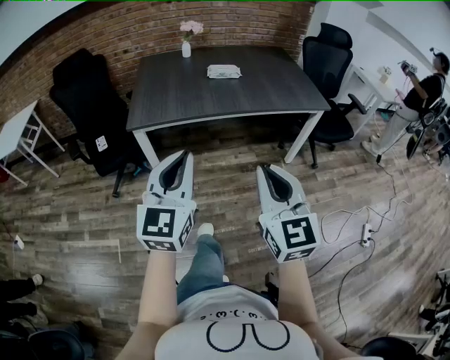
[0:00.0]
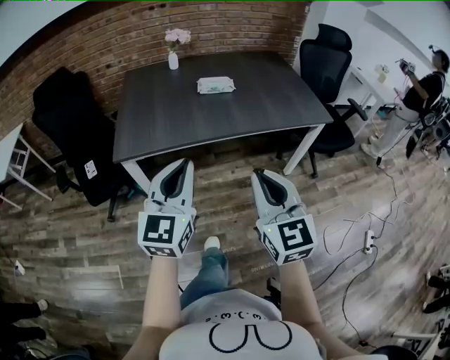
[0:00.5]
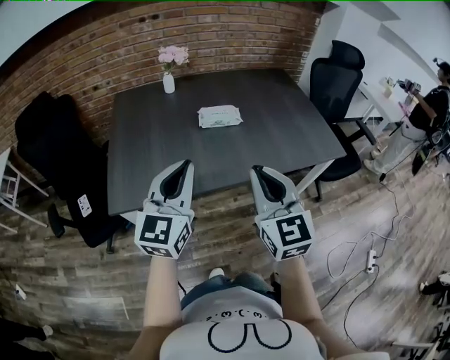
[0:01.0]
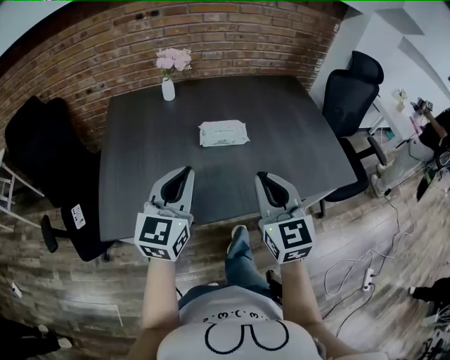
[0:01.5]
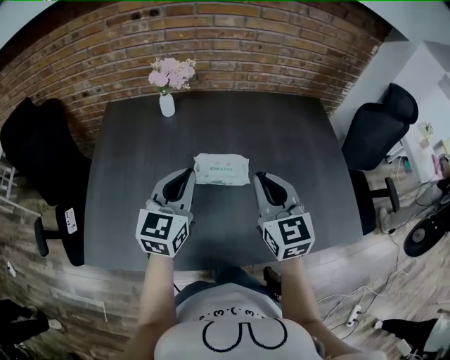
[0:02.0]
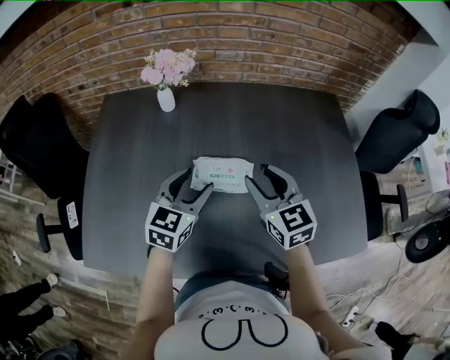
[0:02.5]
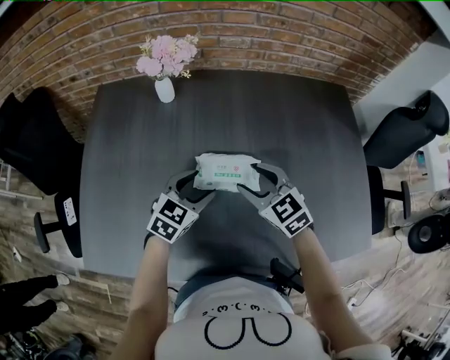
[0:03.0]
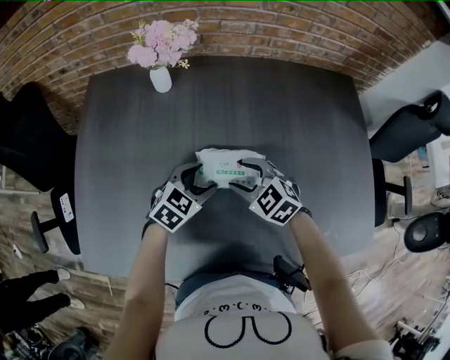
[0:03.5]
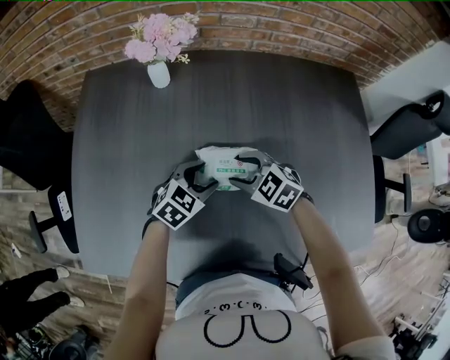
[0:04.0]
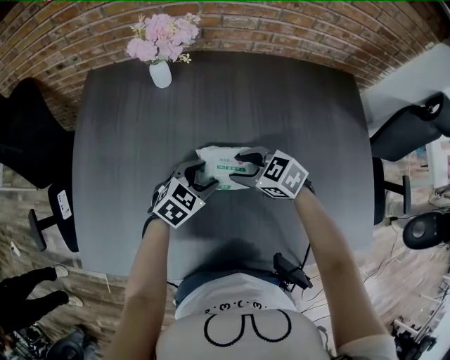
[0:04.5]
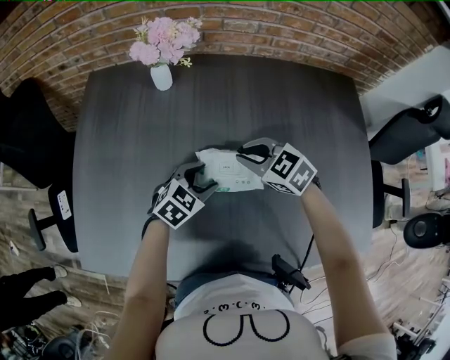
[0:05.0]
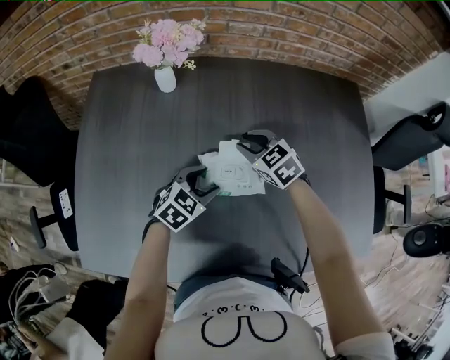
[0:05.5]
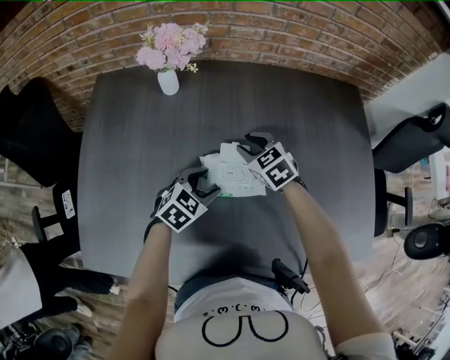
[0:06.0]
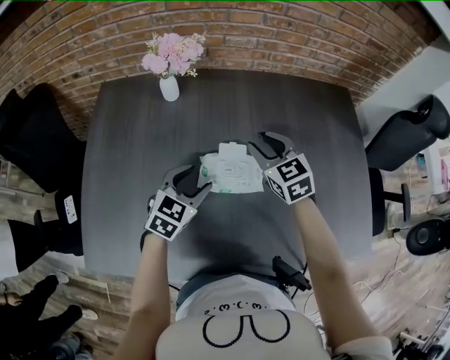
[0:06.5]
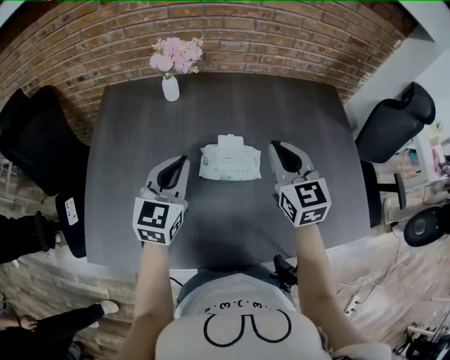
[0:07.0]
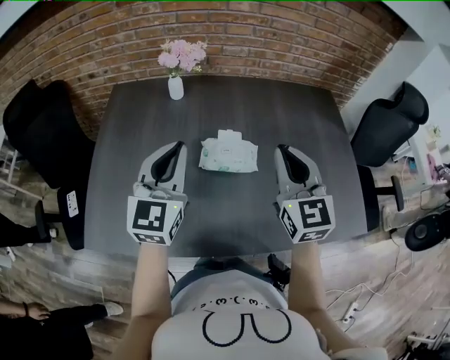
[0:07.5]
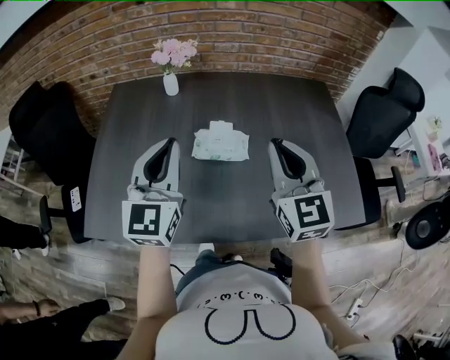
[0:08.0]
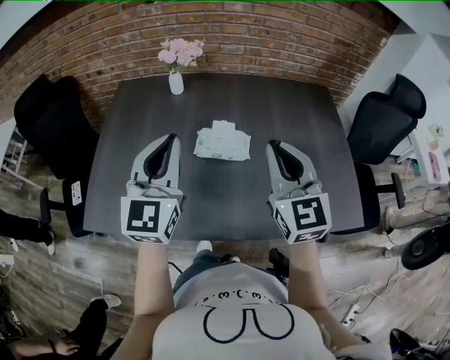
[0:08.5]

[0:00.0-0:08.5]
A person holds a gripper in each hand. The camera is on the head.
0:00.0 to 0:02.0: The pair of grippers is taken forward, some 80 cm.
0:02.0 to 0:04.0: The two grippers go about 25 cm downward and forward. The right gripper angles its fingers downward, by roughly 40 degrees, and opens its fingers. Meanwhile the left gripper tilts its fingers roughly 40 degrees downward, and opens.
0:04.0 to 0:06.5: The right gripper swings up and down, about 10 cm each way, with 2 reversals, turns by roughly 40 degrees, and closes its fingers. The left gripper moves upward, approximately 10 cm.
0:06.5 to 0:08.5: The left gripper travels upward and backward by approximately 30 cm, tips its fingers upward by approximately 40 degrees, and closes its fingers. The right gripper is displaced backward and upward by roughly 30 cm, changes its angle by about 30 degrees, and closes up.

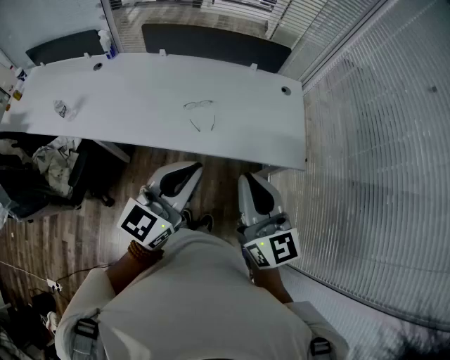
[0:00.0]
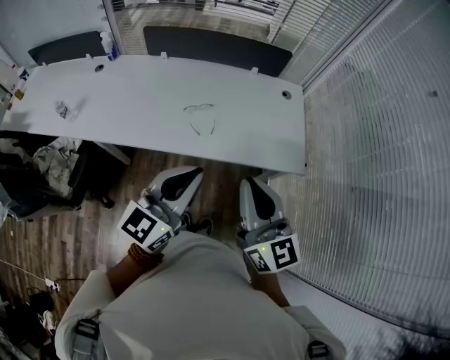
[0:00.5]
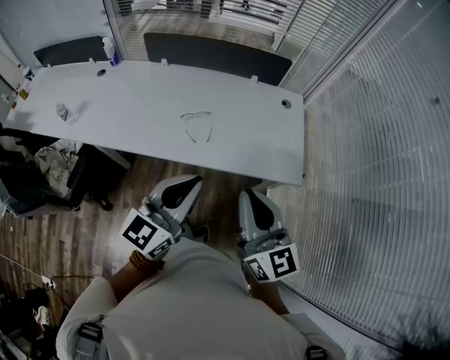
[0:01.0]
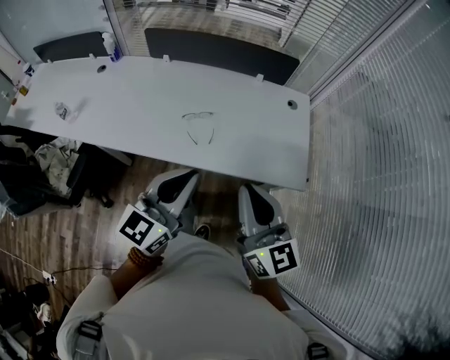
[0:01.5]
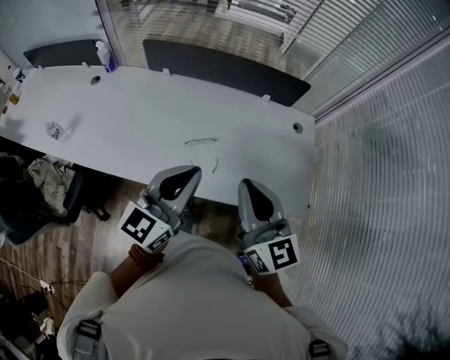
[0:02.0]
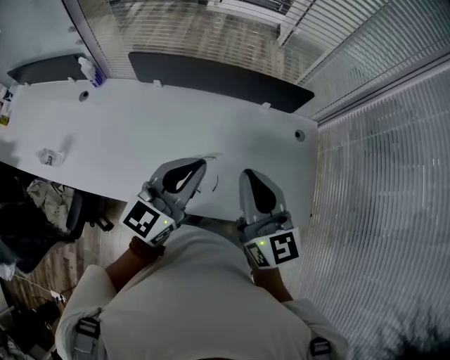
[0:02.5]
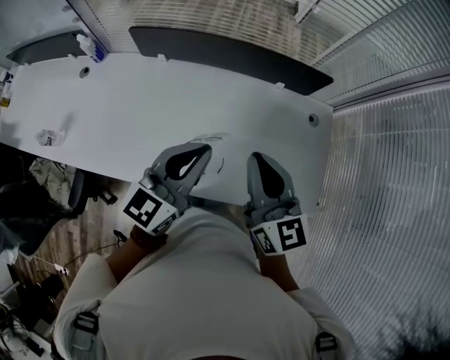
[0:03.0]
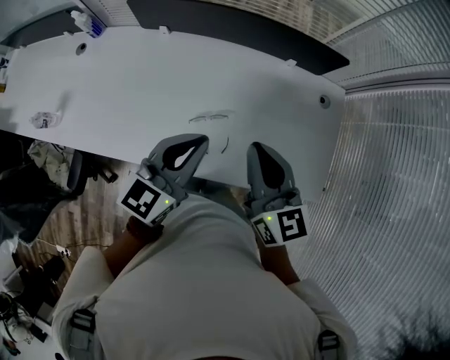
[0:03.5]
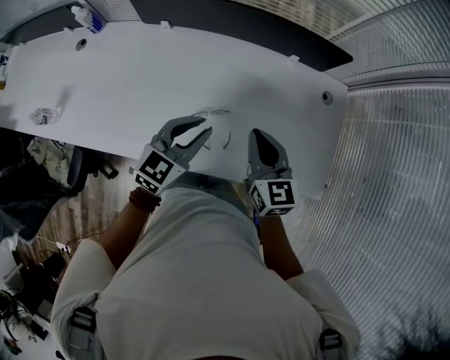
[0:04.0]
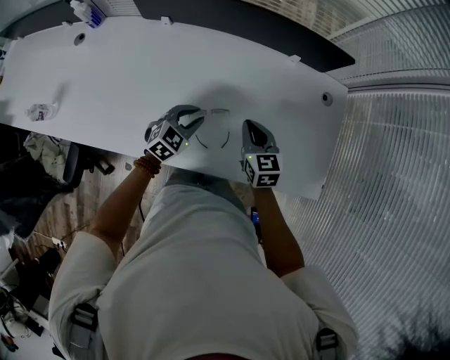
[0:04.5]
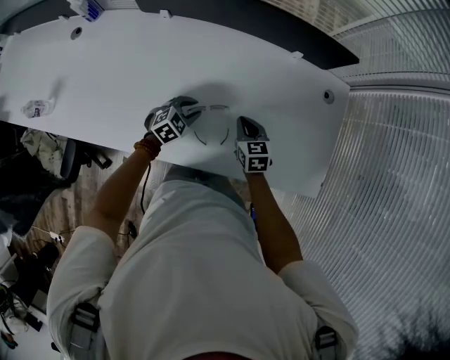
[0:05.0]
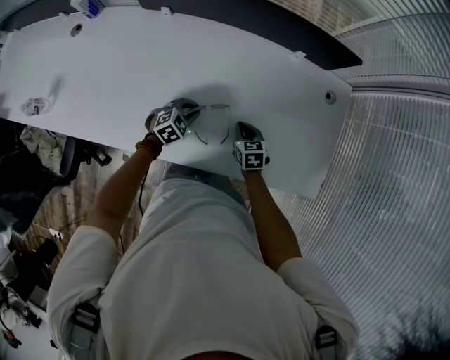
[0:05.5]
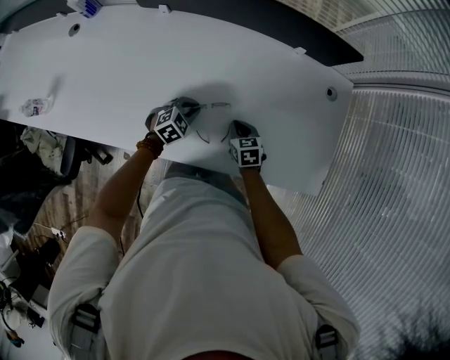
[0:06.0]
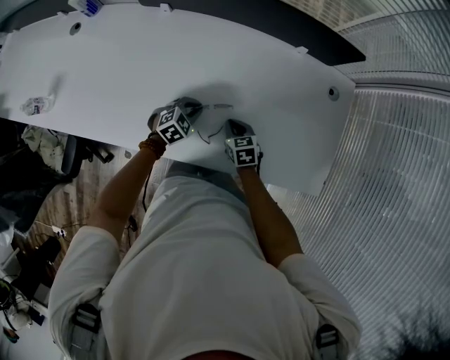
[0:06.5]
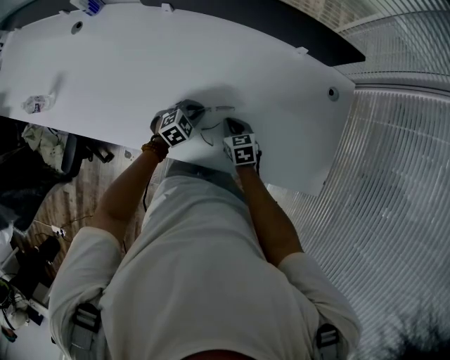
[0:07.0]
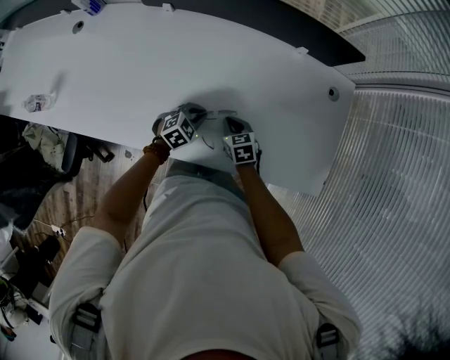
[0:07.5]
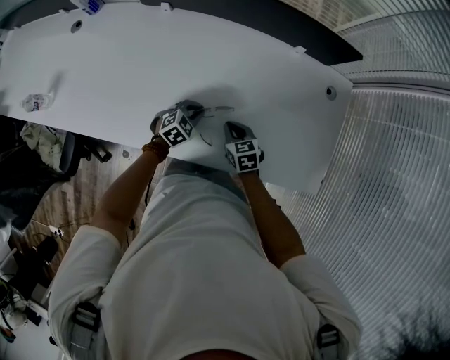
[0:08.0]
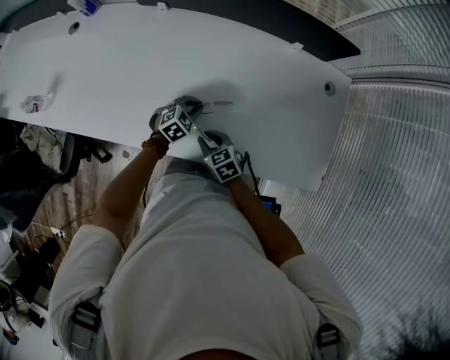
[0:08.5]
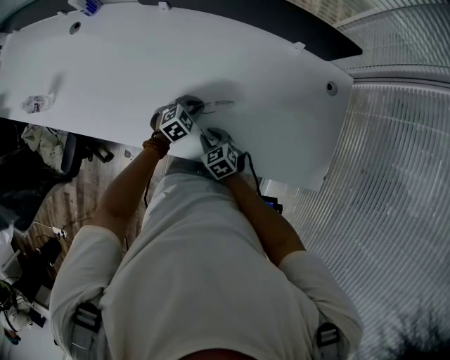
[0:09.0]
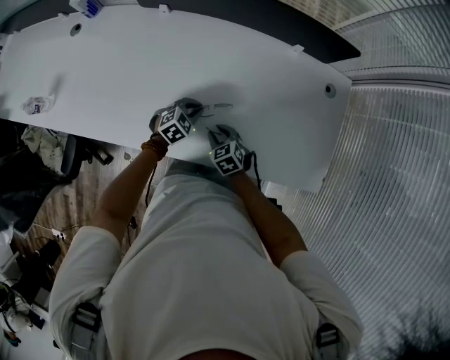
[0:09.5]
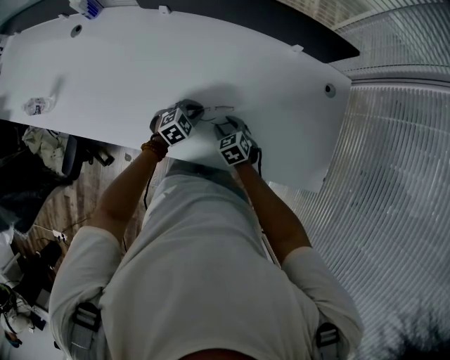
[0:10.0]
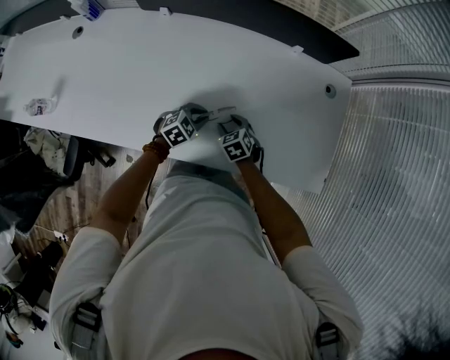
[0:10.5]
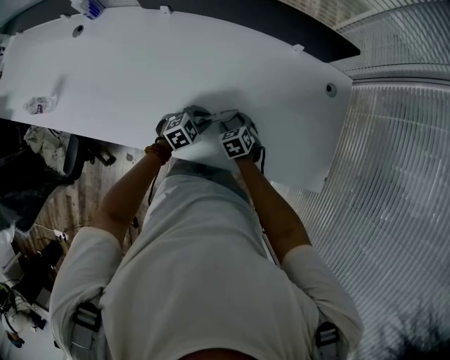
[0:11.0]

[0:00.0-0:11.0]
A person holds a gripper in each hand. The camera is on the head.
0:00.0 to 0:02.0: Both grippers travel together forward, some 20 cm.
0:02.0 to 0:03.5: Both grippers travel together forward and downward, approximately 15 cm.
0:03.5 to 0:05.5: Both grippers move downward, roughly 35 cm. The left gripper points its fingers roughly 40 degrees further downward. Meanwhile the right gripper tips its fingers downward by roughly 40 degrees.
0:05.5 to 0:07.5: The right gripper goes approximately 5 cm to the left.
0:07.5 to 0:09.0: The right gripper shifts about 10 cm backward and to the left.
0:09.0 to 0:11.0: The left gripper ends up about 5 cm from where it was; the right gripper heads forward and to the right, covering some 10 cm, and opens its fingers.

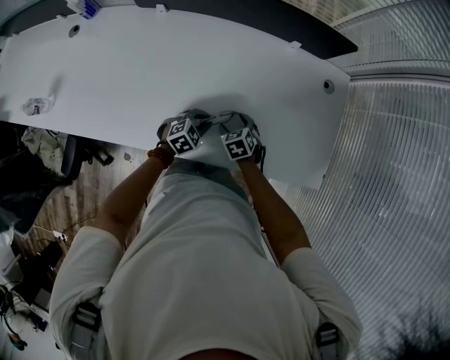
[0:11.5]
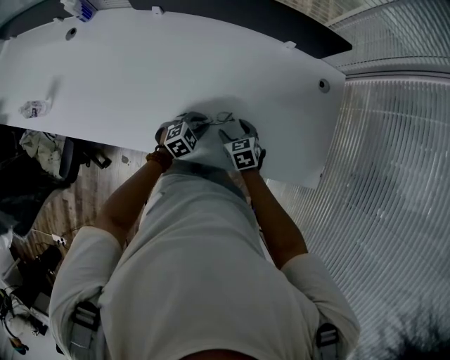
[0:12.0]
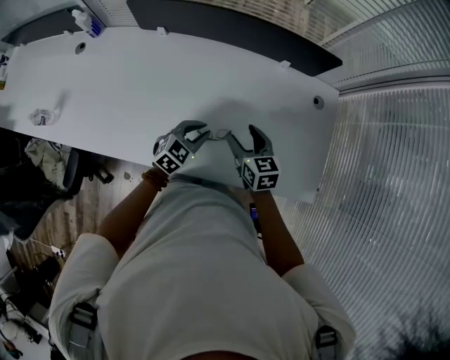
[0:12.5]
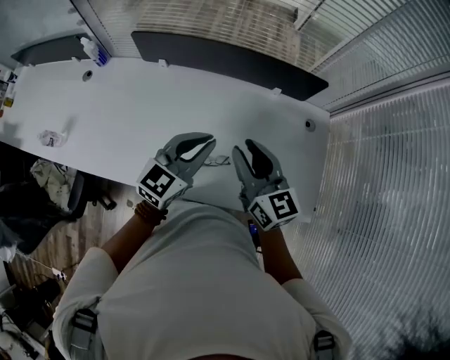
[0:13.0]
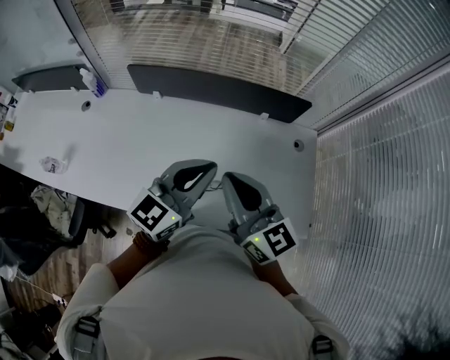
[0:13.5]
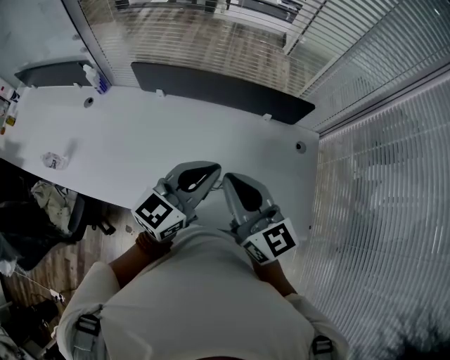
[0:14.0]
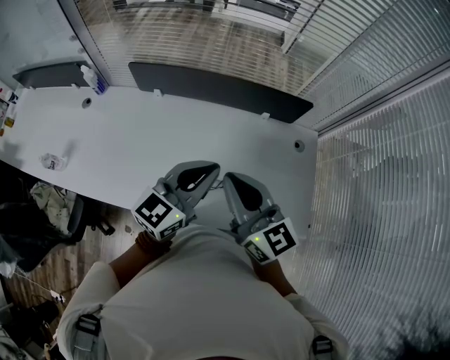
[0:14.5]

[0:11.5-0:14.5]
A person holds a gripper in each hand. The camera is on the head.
0:11.5 to 0:13.0: Both grippers travel together upward, roughly 35 cm. The left gripper angles its fingers upward, by some 40 degrees, while the right gripper tilts its fingers approximately 50 degrees upward, and closes up.
0:13.0 to 0:14.5: Both grippers move upward, some 10 cm. The right gripper closes its fingers.

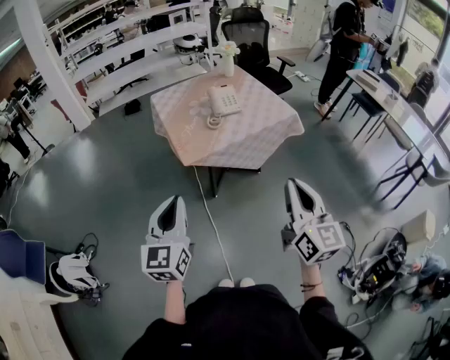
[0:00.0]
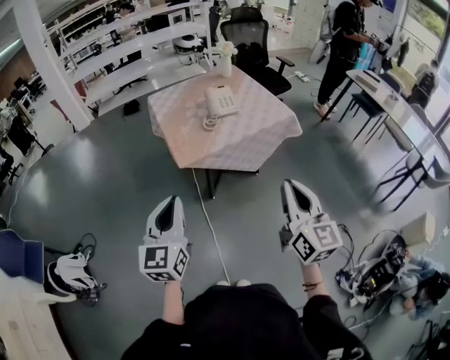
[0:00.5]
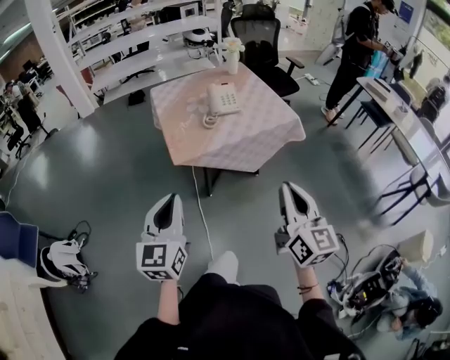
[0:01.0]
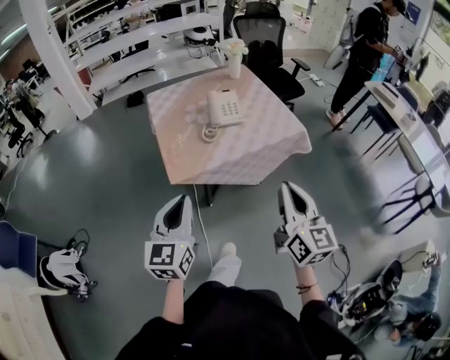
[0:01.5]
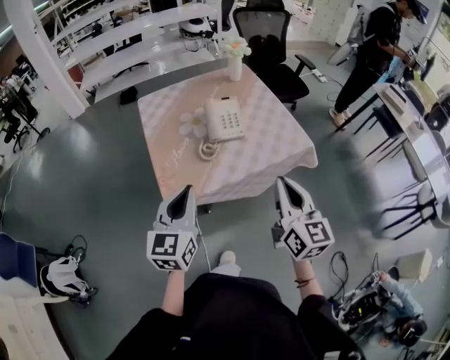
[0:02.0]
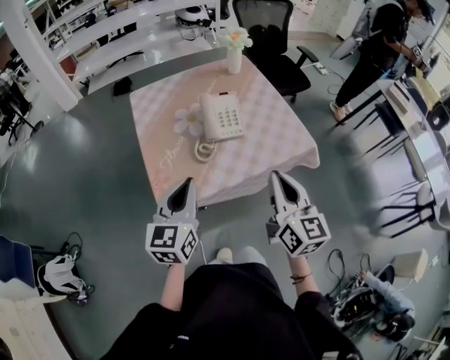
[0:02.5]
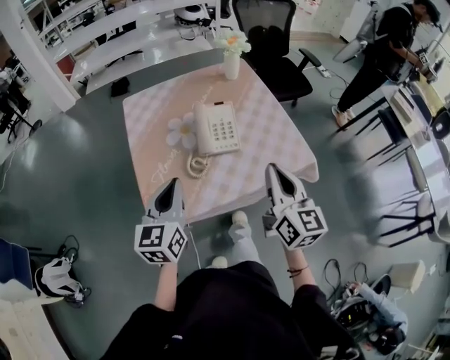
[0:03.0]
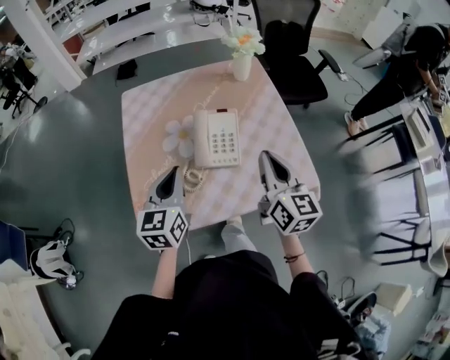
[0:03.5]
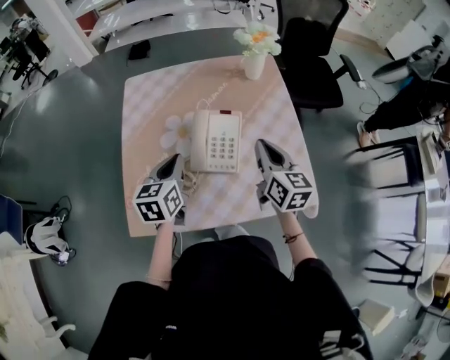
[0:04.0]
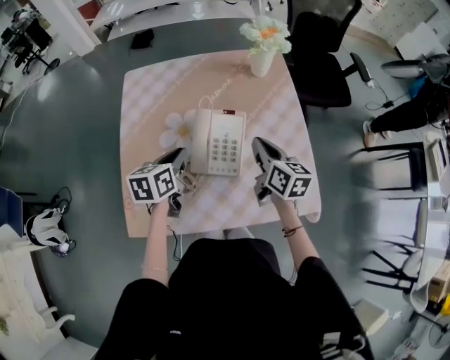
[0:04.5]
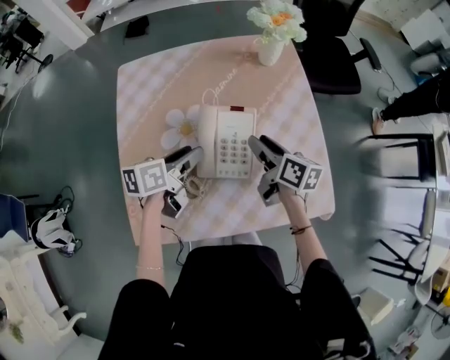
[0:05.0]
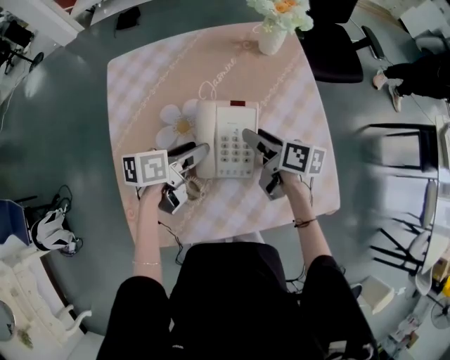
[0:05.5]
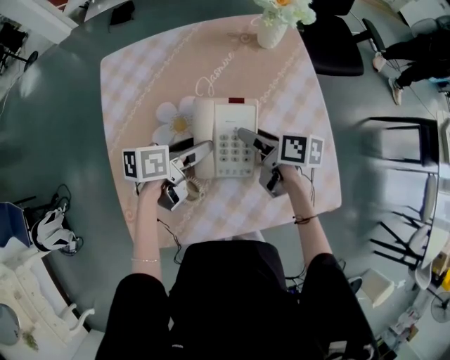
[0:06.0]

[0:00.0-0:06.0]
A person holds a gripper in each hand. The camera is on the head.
0:00.0 to 0:02.0: Both grippers move forward, approximately 30 cm.
0:02.0 to 0:04.0: The left gripper heads forward and downward, covering roughly 35 cm, and changes its angle by some 30 degrees. The right gripper moves forward, roughly 40 cm, and turns by some 20 degrees.
0:04.0 to 0:06.0: The right gripper travels downward, forward and to the left by approximately 15 cm, rotates some 50 degrees, and opens. Meanwhile the left gripper shifts about 15 cm downward and forward, swivels about 50 degrees, and opens up.
